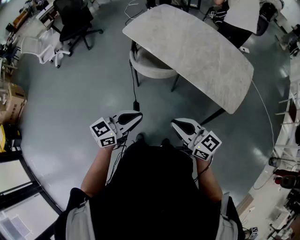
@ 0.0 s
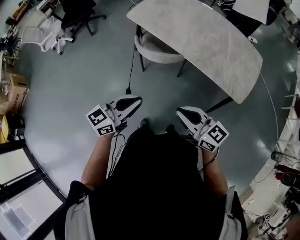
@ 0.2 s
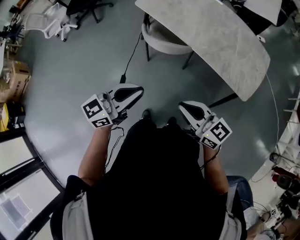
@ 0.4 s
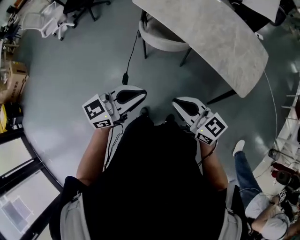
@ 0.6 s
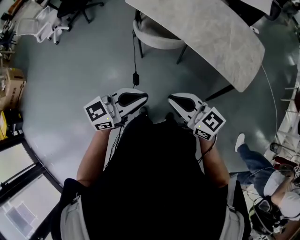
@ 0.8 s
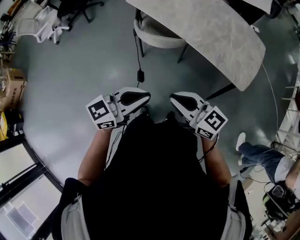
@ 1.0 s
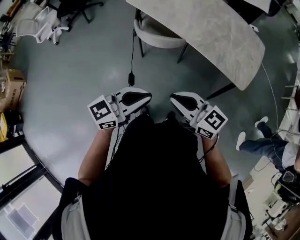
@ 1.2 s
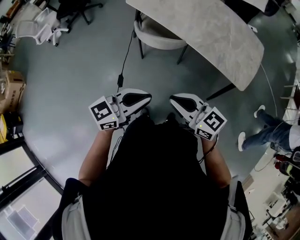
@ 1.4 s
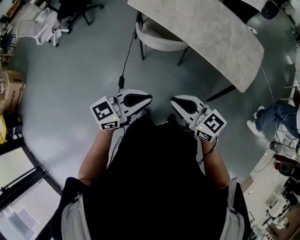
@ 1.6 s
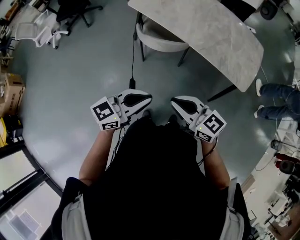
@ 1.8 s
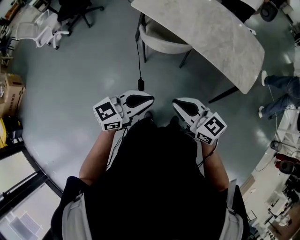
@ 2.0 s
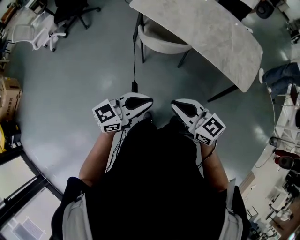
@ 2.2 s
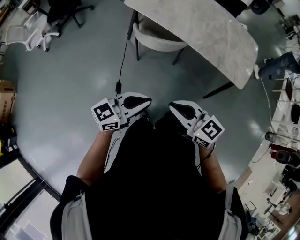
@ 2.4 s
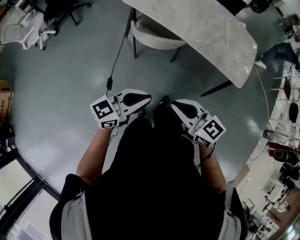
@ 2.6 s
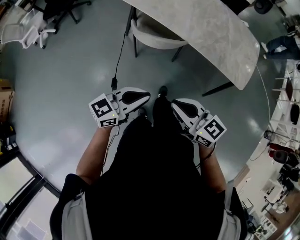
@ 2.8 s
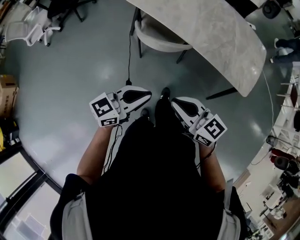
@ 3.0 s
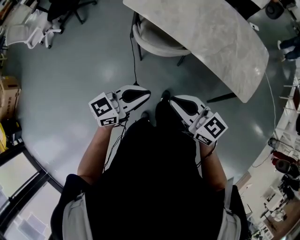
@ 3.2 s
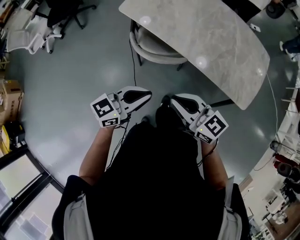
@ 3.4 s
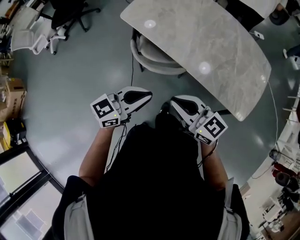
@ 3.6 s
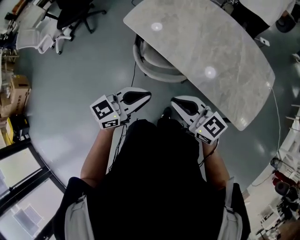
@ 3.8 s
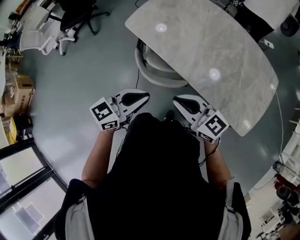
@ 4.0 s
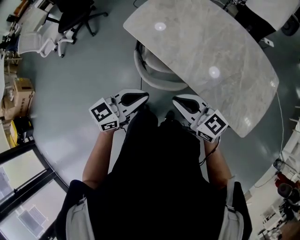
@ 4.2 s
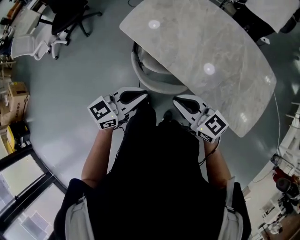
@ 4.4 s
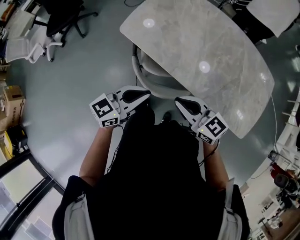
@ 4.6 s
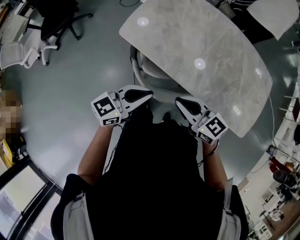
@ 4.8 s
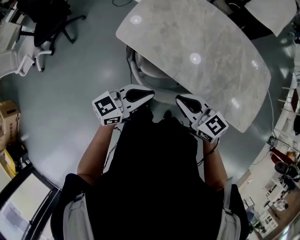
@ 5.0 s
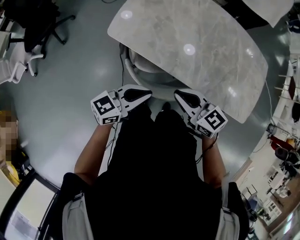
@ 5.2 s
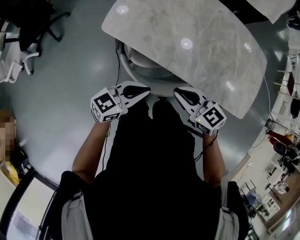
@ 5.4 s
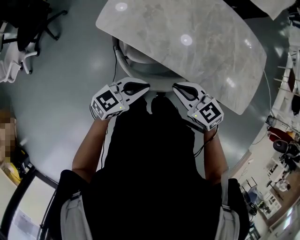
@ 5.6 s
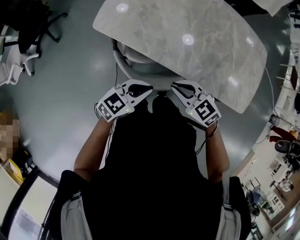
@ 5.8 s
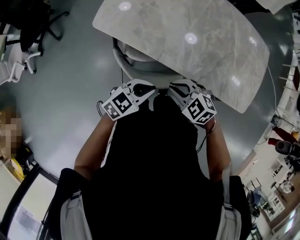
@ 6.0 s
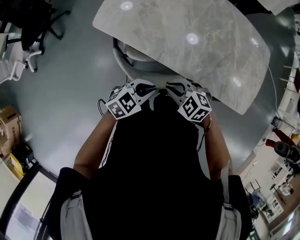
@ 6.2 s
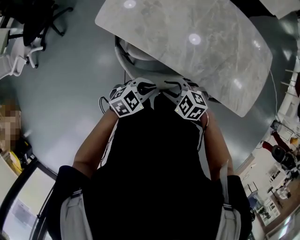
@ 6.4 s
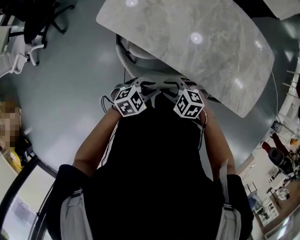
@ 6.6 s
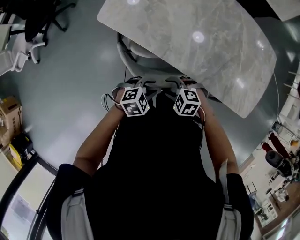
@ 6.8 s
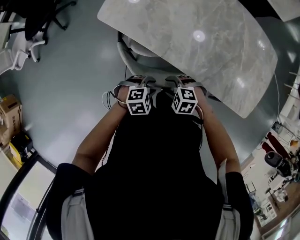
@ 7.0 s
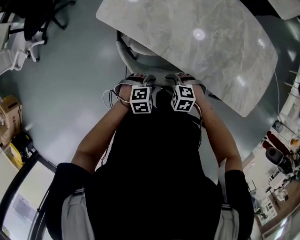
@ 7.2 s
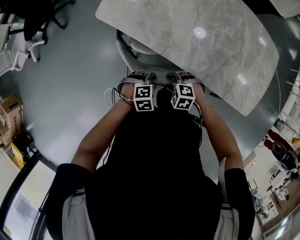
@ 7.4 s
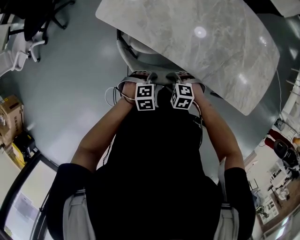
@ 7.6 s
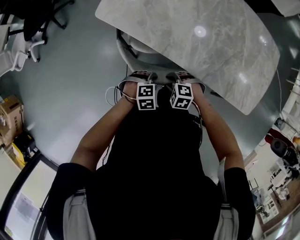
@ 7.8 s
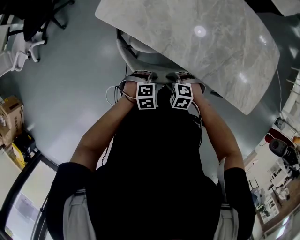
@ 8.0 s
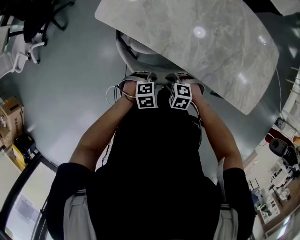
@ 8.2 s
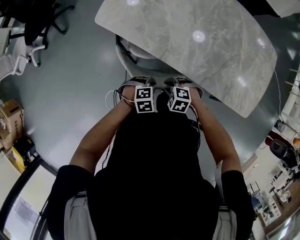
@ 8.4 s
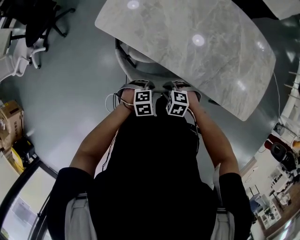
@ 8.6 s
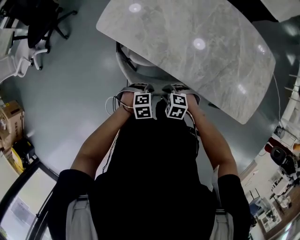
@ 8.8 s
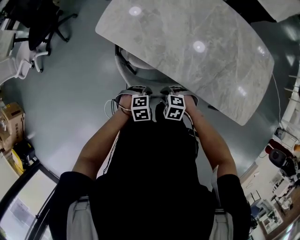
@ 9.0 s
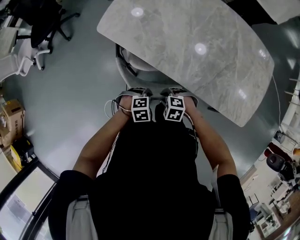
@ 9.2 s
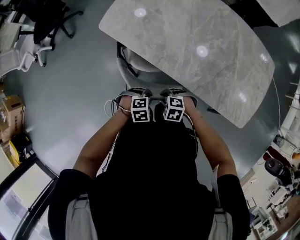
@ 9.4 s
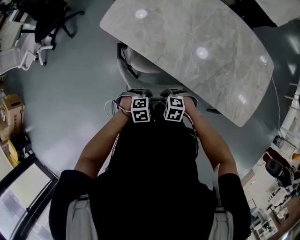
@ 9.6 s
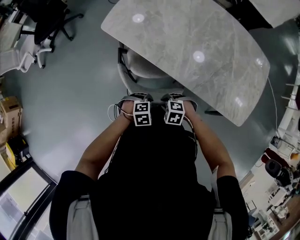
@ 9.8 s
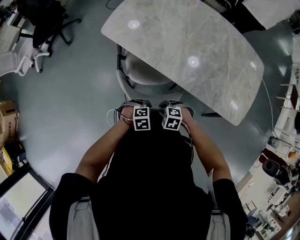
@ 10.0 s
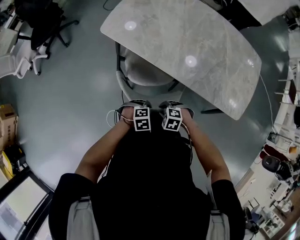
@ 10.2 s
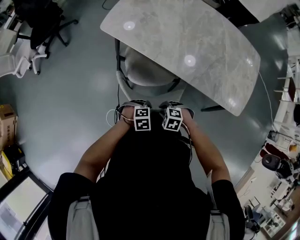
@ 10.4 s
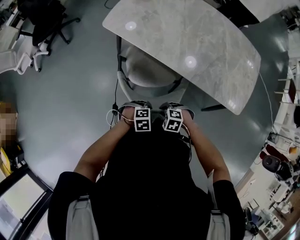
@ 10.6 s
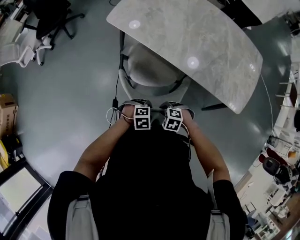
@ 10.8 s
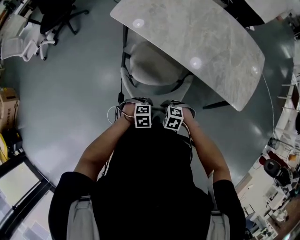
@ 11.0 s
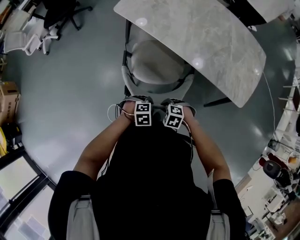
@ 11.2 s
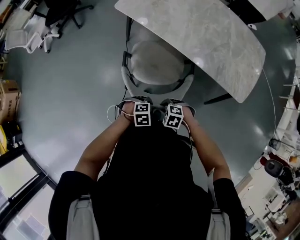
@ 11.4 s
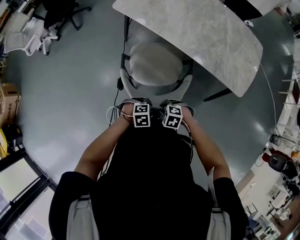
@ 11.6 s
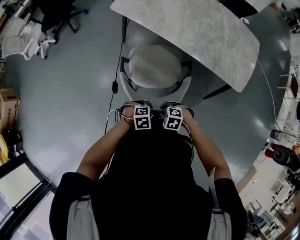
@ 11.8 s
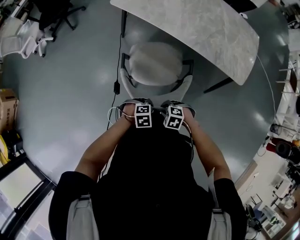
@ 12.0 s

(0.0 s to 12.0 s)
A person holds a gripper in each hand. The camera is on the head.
0.0 s - 1.6 s: The right gripper moves to the left, some 5 cm.
1.6 s - 3.0 s: The left gripper is displaced forward and to the left by some 10 cm. The right gripper moves forward, about 5 cm.
3.0 s - 4.4 s: The grippers both shift forward by approximately 30 cm.
4.4 s - 6.0 s: The grippers both shift downward by about 10 cm. The left gripper turns by about 30 degrees. Meanwhile the right gripper tips its fingers downward by some 40 degrees.
6.0 s - 7.6 s: Both grippers travel together downward, about 15 cm. The right gripper rotates about 30 degrees, and opens. Meanwhile the left gripper tilts its fingers some 40 degrees downward, and opens up.
7.6 s - 9.0 s: Both grippers stay put.
9.0 s - 10.4 s: The right gripper ends up approximately 15 cm from where it was, while the left gripper shifts by approximately 15 cm.
10.4 s - 12.0 s: The right gripper shifts by some 25 cm. Meanwhile the left gripper ends up about 25 cm from where it was.

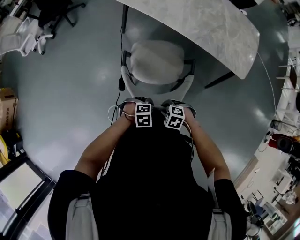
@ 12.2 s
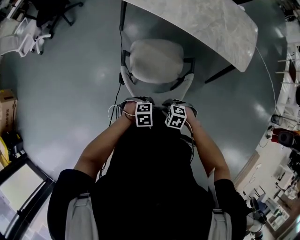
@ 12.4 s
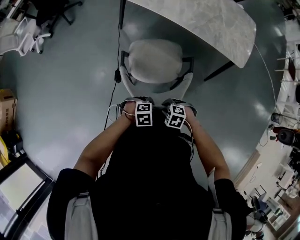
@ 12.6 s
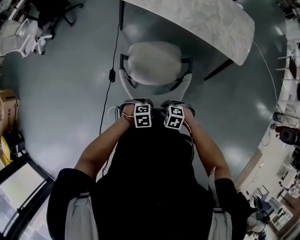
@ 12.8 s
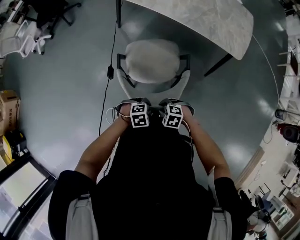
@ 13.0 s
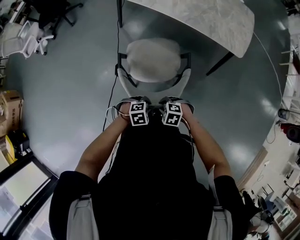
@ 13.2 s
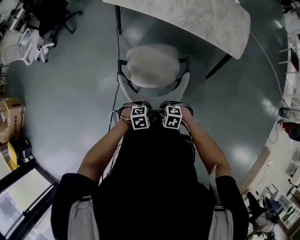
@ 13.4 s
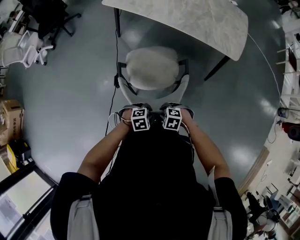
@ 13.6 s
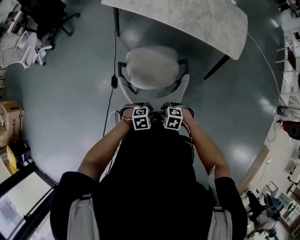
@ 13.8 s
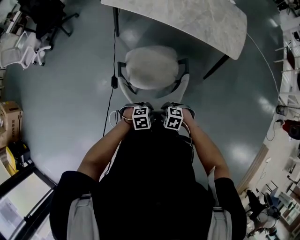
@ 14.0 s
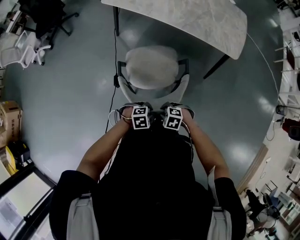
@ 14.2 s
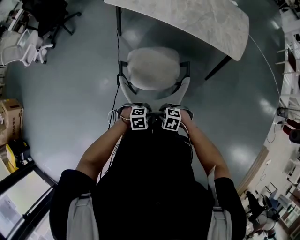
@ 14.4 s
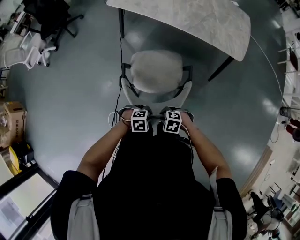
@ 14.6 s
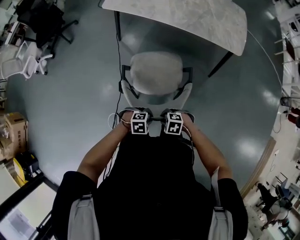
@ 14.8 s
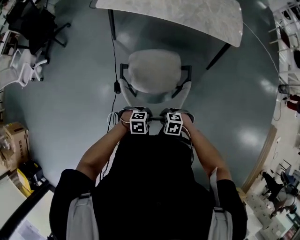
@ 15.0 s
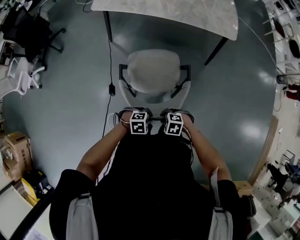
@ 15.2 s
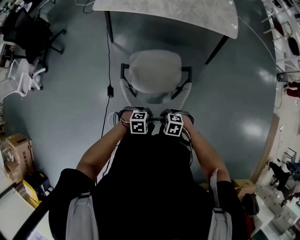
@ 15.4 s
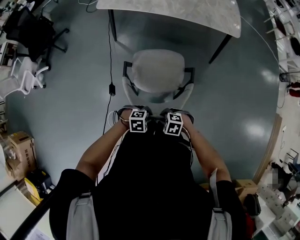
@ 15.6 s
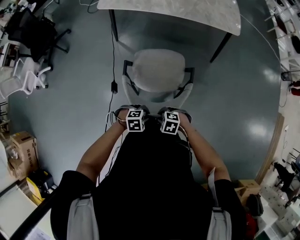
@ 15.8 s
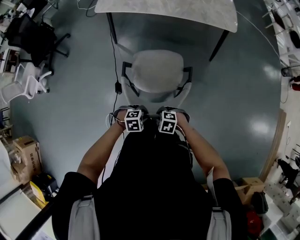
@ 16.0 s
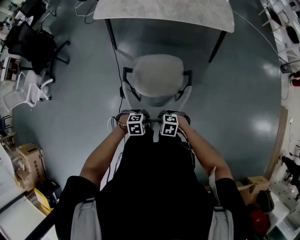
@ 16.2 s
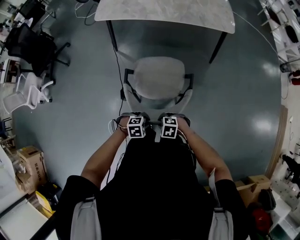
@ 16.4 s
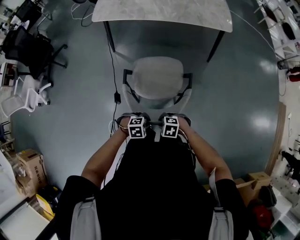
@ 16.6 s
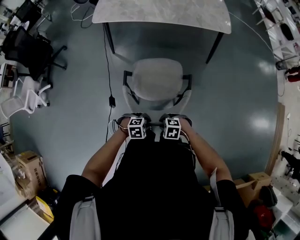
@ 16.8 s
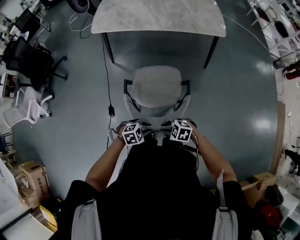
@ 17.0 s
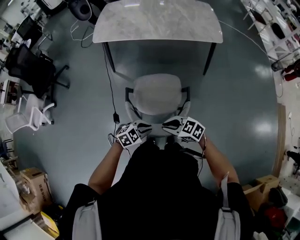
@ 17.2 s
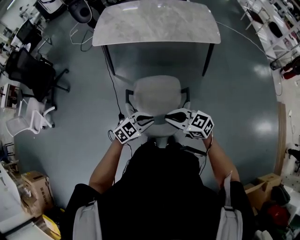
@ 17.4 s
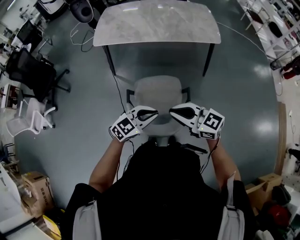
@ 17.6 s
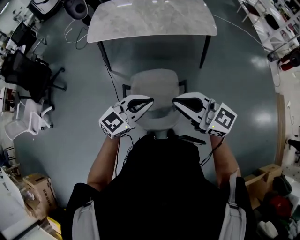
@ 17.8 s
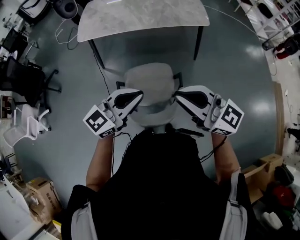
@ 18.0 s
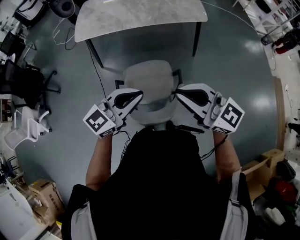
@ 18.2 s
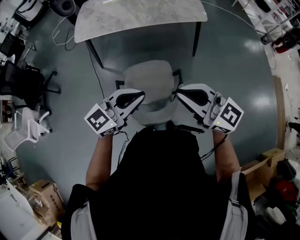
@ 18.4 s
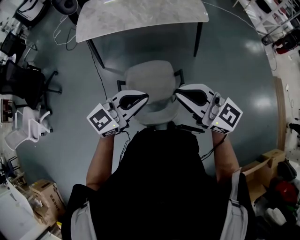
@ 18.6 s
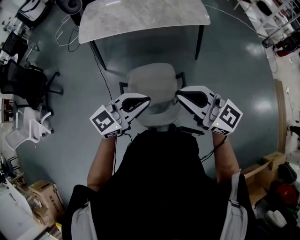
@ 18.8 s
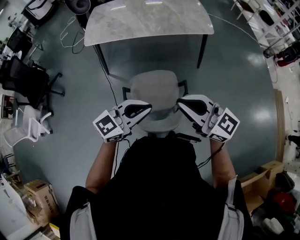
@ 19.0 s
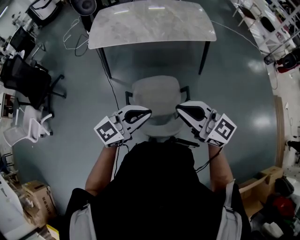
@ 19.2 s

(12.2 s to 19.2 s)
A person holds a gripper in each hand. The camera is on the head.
12.2 s - 13.6 s: The left gripper ends up roughly 10 cm from where it was, while the right gripper ends up roughly 10 cm from where it was.
13.6 s - 15.0 s: The right gripper shifts by roughly 15 cm. Meanwhile the left gripper moves some 15 cm.
15.0 s - 16.4 s: The right gripper ends up some 10 cm from where it was; the left gripper changes place by about 10 cm.
16.4 s - 17.8 s: Both grippers move upward, roughly 35 cm. The right gripper angles its fingers upward, by roughly 70 degrees. The left gripper tilts its fingers some 60 degrees upward.
17.8 s - 19.2 s: The grippers make only small movements.

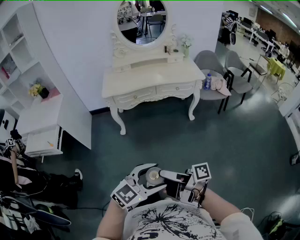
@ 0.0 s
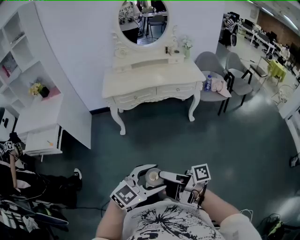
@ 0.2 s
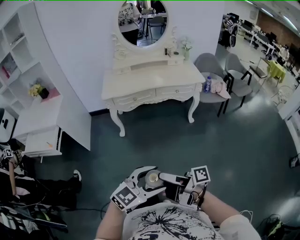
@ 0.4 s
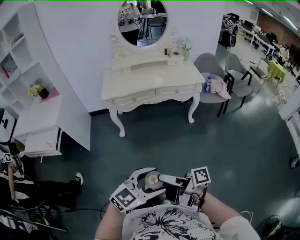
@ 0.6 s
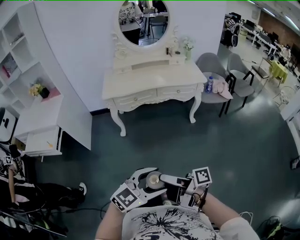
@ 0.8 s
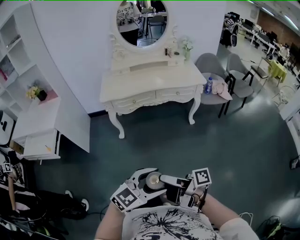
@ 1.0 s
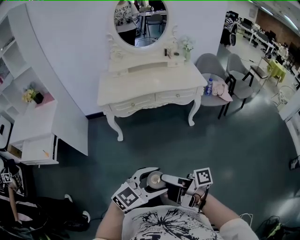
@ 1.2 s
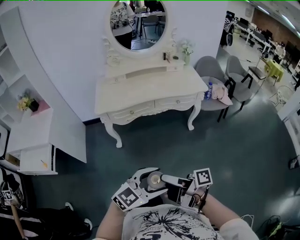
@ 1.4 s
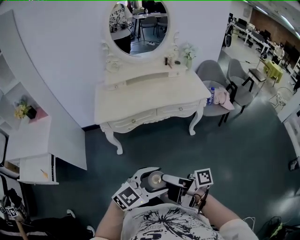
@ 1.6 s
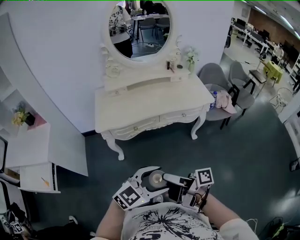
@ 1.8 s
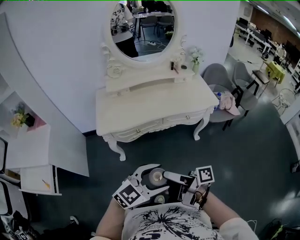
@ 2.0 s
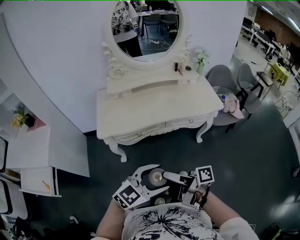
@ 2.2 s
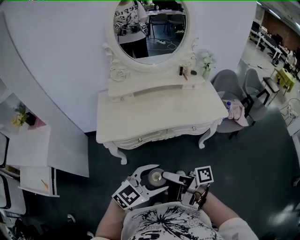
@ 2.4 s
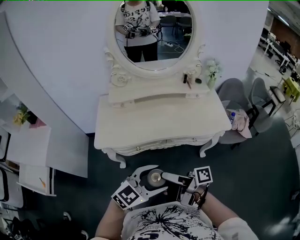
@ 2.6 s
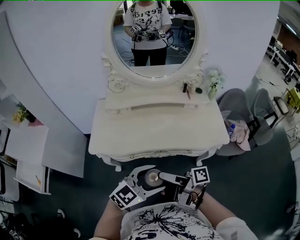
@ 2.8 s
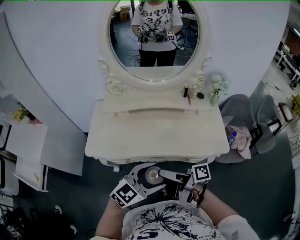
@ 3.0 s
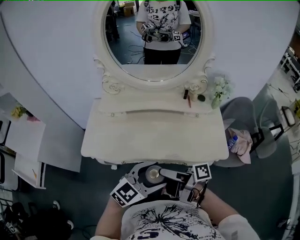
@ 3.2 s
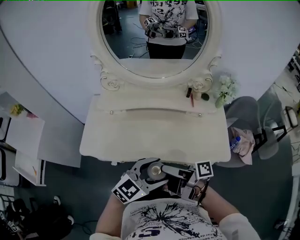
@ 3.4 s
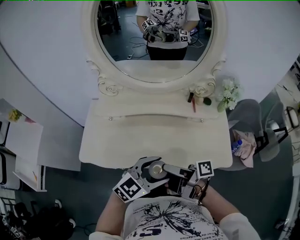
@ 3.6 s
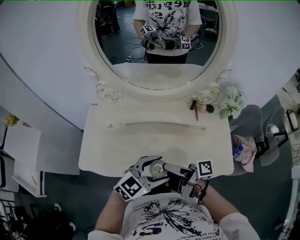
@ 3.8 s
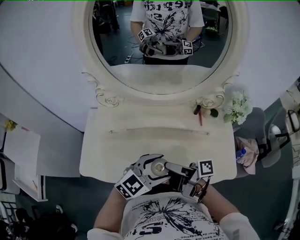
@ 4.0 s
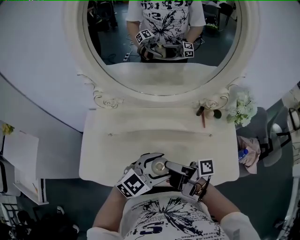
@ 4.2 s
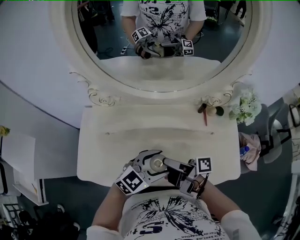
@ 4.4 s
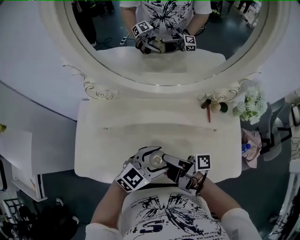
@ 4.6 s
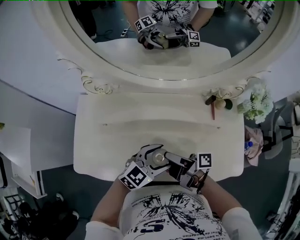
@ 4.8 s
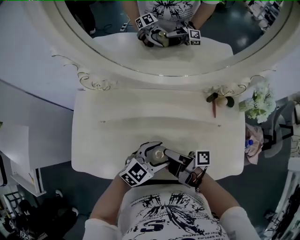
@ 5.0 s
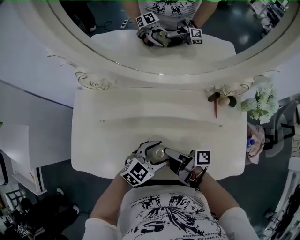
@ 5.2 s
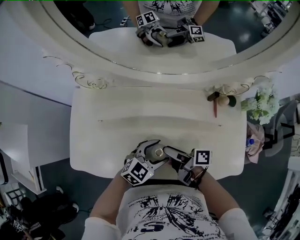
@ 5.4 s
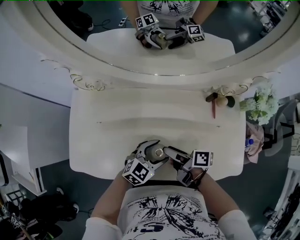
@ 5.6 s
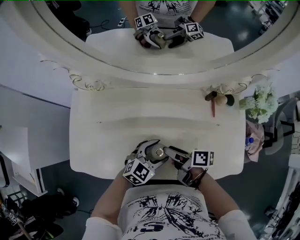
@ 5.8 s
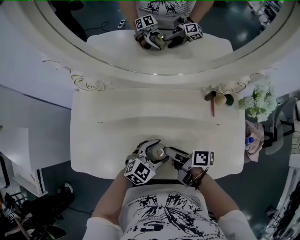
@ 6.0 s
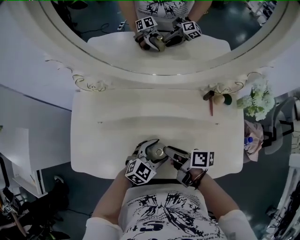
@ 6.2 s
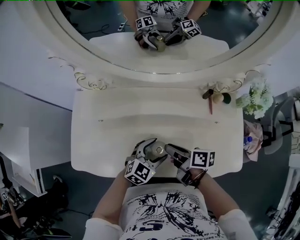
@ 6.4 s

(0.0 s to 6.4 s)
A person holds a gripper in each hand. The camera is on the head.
0.0 s - 1.6 s: The left gripper ends up some 25 cm from where it was.
1.6 s - 3.2 s: The left gripper moves about 50 cm.
3.2 s - 4.8 s: The left gripper changes place by approximately 30 cm.
4.8 s - 6.4 s: The left gripper shifts roughly 5 cm downward.
